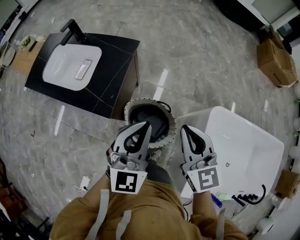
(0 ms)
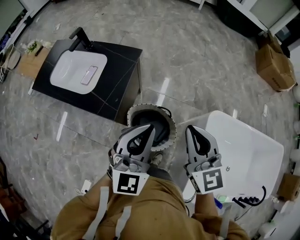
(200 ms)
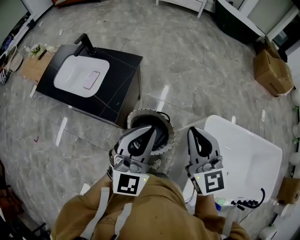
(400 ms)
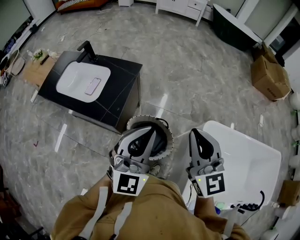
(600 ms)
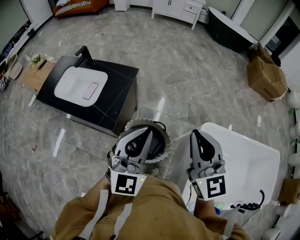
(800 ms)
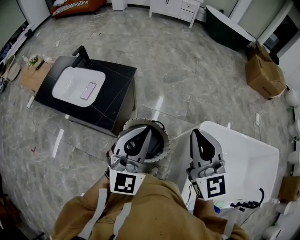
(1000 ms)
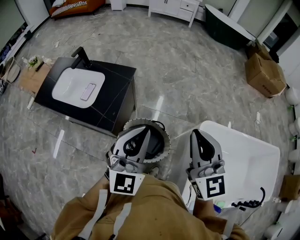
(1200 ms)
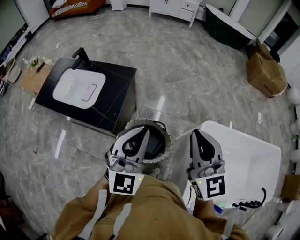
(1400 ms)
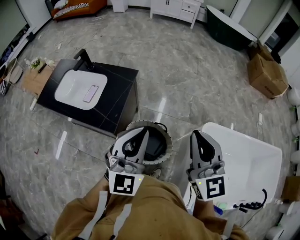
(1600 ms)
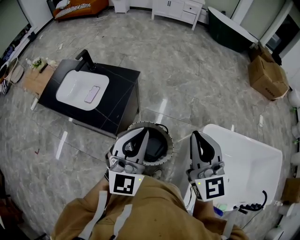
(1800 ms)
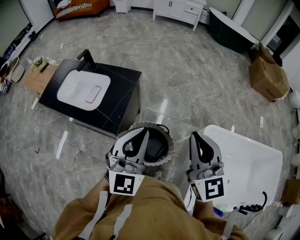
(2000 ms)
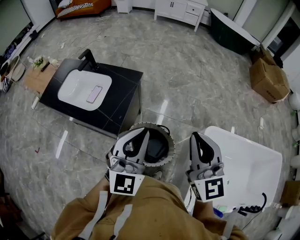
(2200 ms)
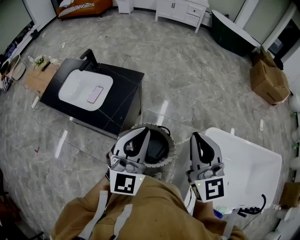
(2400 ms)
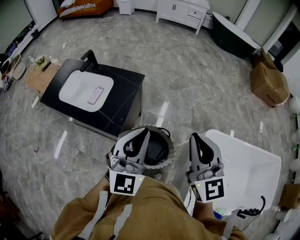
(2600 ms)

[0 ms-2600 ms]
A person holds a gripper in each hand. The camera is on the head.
0 ms to 1200 ms: Both grippers move upward, roughly 15 cm.
1200 ms to 2600 ms: There are only small adjustments of the grippers.

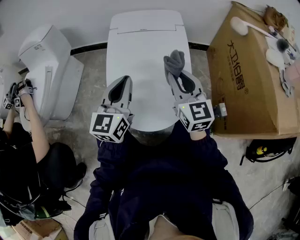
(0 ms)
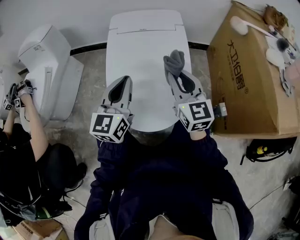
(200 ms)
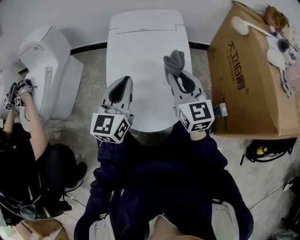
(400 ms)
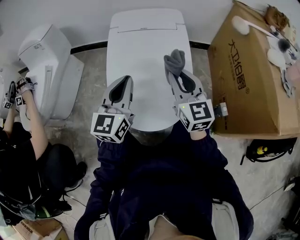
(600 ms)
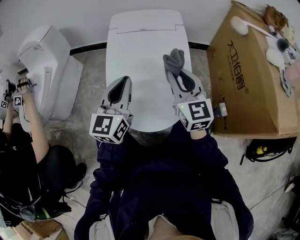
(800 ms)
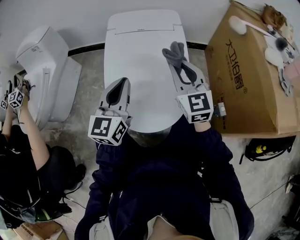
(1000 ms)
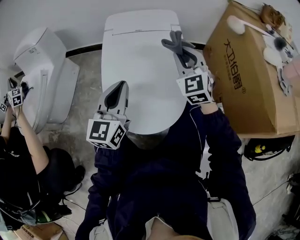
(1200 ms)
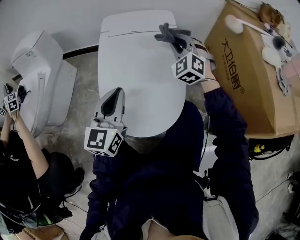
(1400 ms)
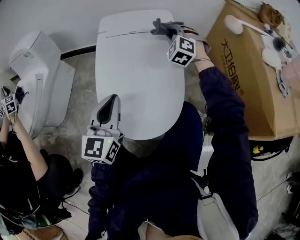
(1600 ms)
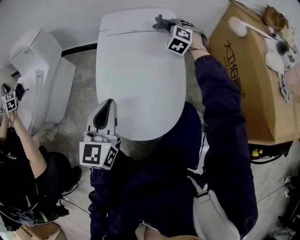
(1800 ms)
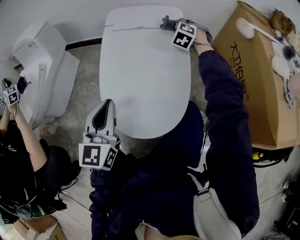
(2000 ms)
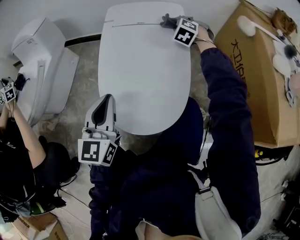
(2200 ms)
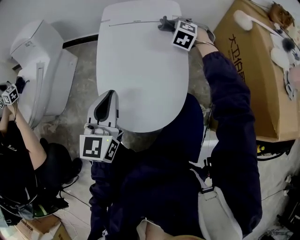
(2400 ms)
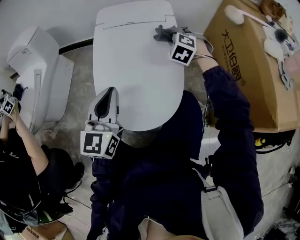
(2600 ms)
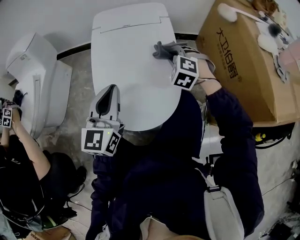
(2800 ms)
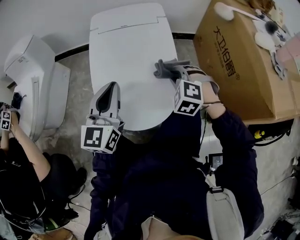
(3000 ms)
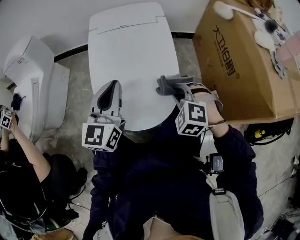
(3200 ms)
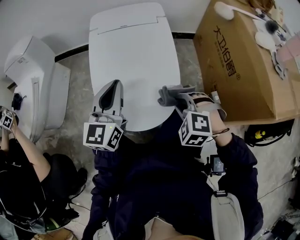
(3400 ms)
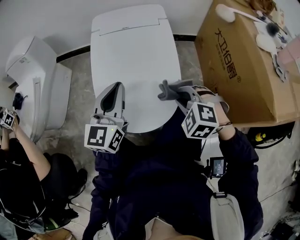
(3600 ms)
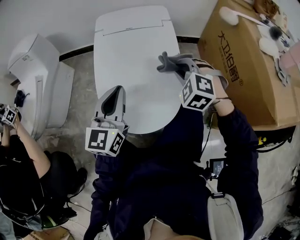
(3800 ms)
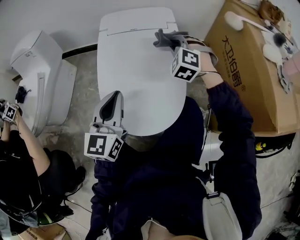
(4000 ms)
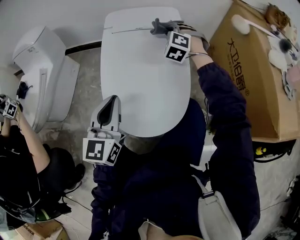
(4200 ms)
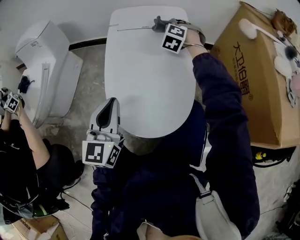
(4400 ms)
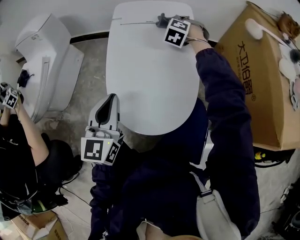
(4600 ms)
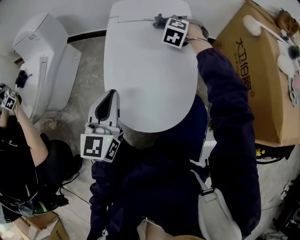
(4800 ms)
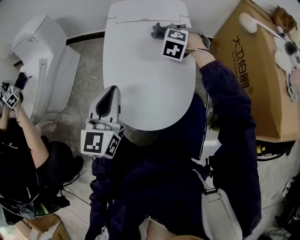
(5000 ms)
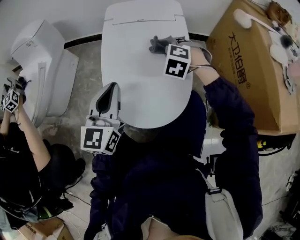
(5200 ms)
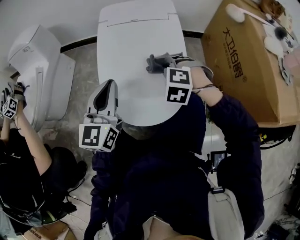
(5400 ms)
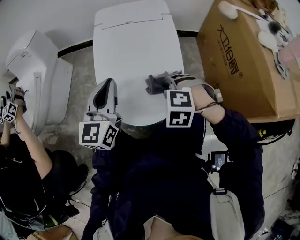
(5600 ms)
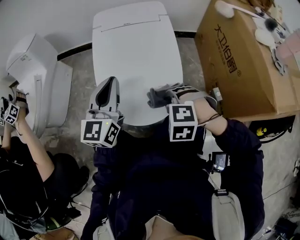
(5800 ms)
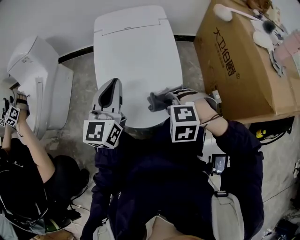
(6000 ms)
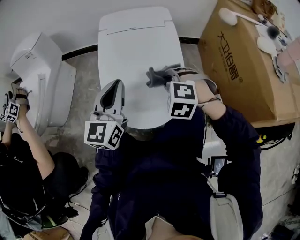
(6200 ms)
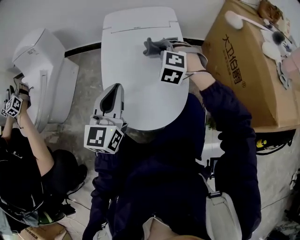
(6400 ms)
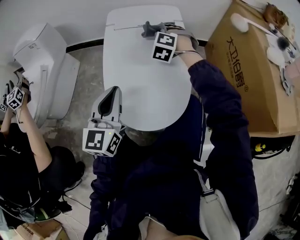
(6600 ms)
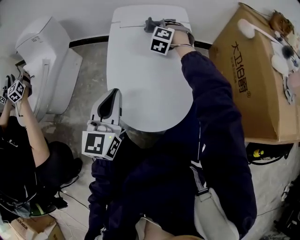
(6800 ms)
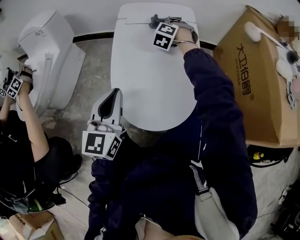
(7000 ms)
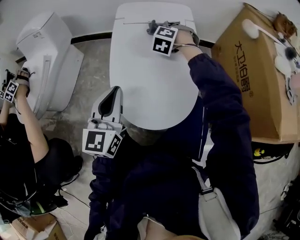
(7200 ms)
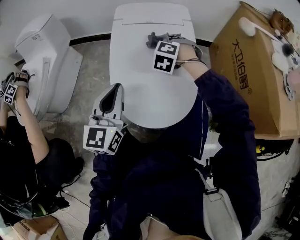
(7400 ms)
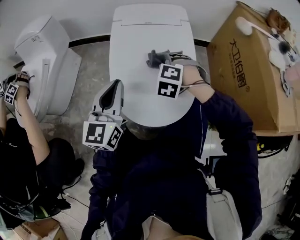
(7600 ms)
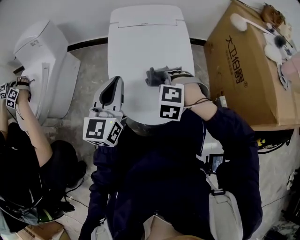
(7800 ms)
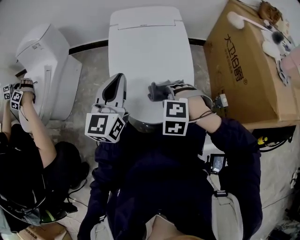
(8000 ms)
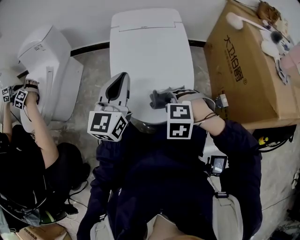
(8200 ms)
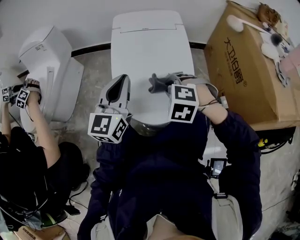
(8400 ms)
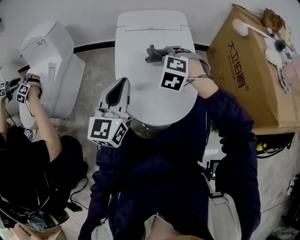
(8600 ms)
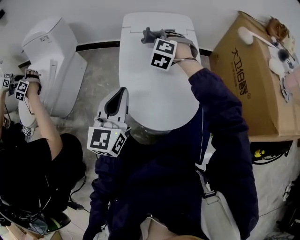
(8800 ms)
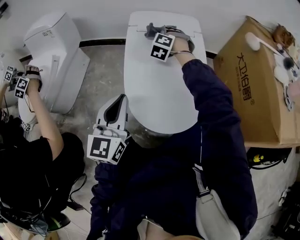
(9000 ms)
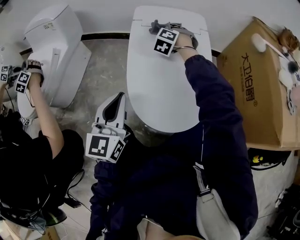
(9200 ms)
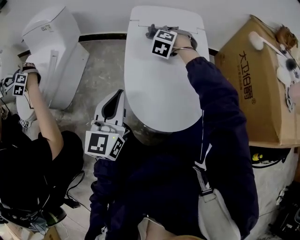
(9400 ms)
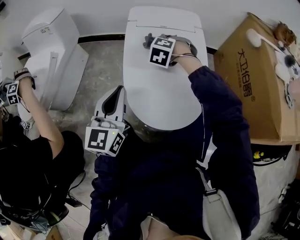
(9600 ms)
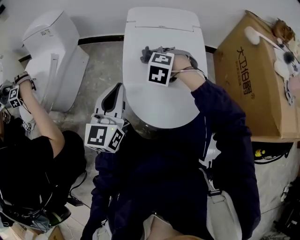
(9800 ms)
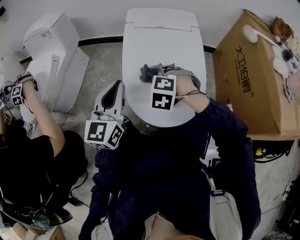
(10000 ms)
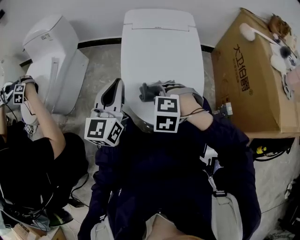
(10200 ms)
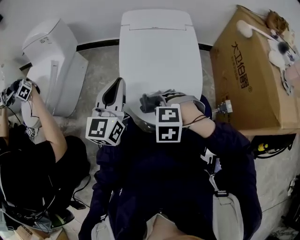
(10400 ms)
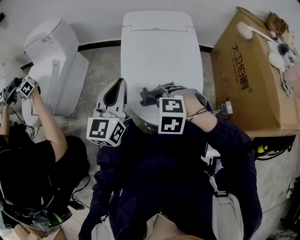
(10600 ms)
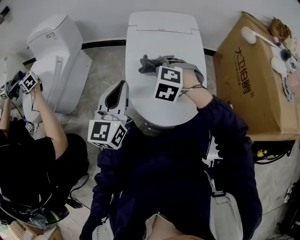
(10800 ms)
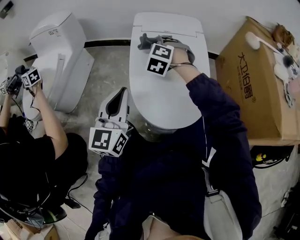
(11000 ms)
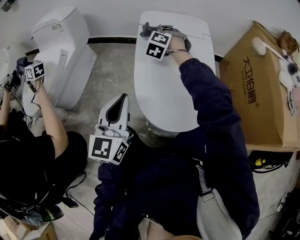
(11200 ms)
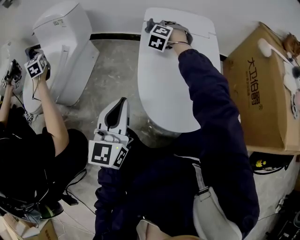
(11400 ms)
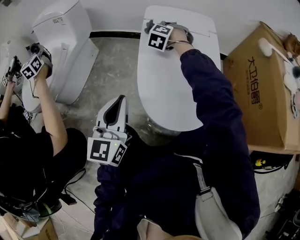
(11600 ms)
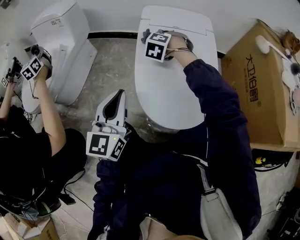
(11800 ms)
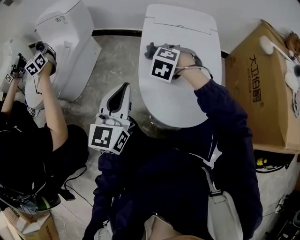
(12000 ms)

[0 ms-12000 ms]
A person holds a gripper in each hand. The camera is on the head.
3000 ms to 4400 ms: The left gripper ends up about 5 cm from where it was.
4400 ms to 6000 ms: The left gripper ends up roughly 5 cm from where it was.
6000 ms to 7600 ms: The left gripper shifts by roughly 5 cm.

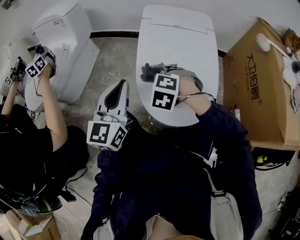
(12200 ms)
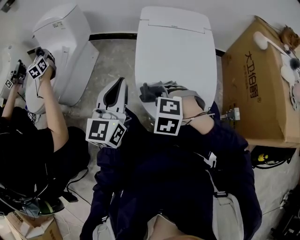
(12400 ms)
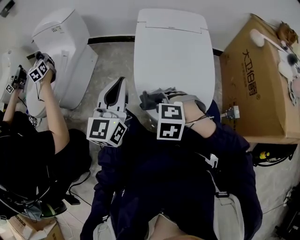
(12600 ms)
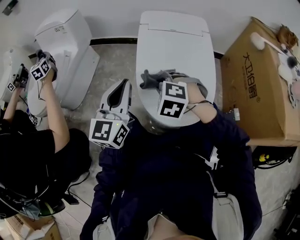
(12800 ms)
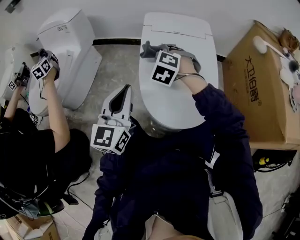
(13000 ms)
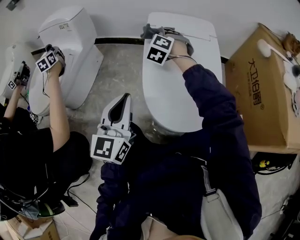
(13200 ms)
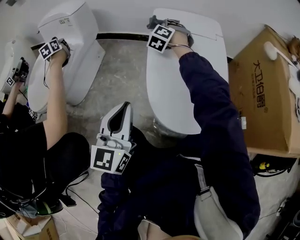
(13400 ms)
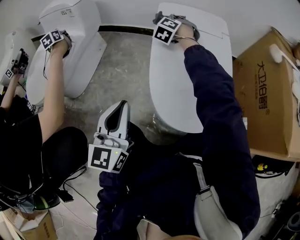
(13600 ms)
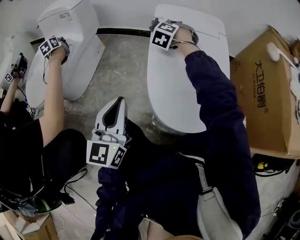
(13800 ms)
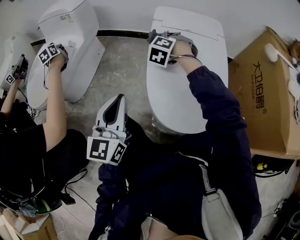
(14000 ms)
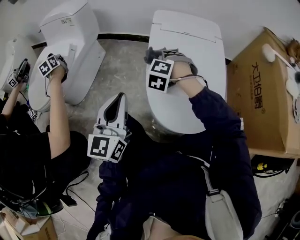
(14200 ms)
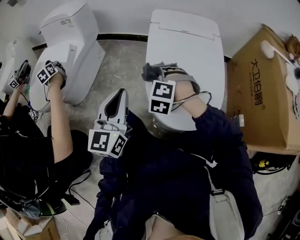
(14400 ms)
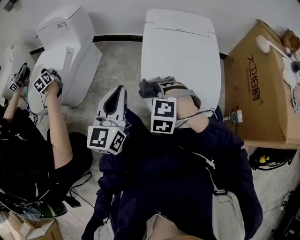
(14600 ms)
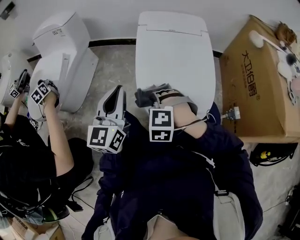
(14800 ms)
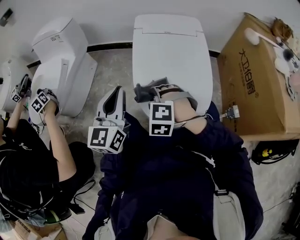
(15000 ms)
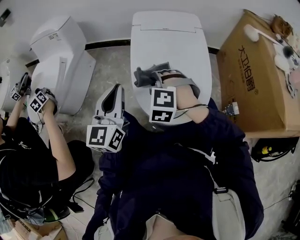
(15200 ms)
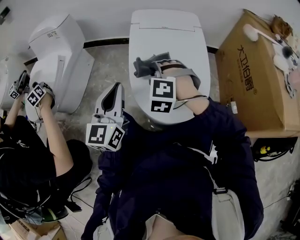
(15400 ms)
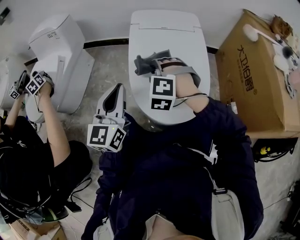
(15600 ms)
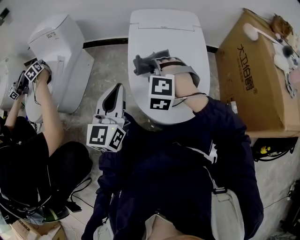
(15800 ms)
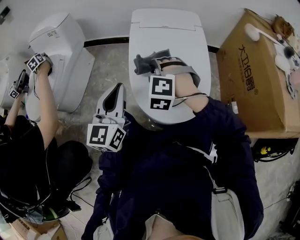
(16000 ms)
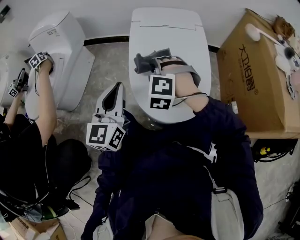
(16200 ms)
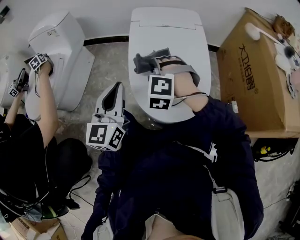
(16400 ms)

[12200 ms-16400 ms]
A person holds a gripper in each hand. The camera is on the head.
12200 ms to 13600 ms: The left gripper moves some 5 cm.
13600 ms to 15000 ms: The left gripper ends up roughly 5 cm from where it was.

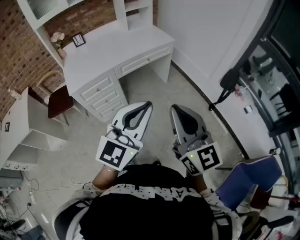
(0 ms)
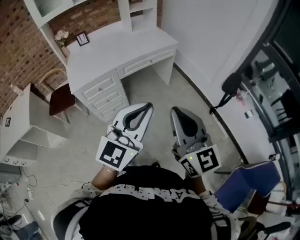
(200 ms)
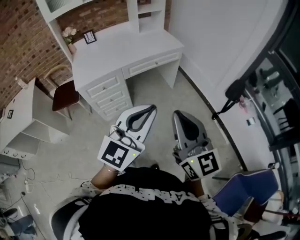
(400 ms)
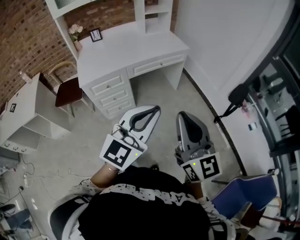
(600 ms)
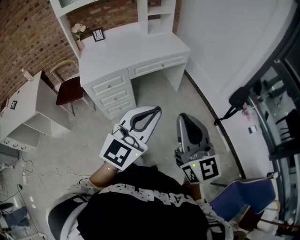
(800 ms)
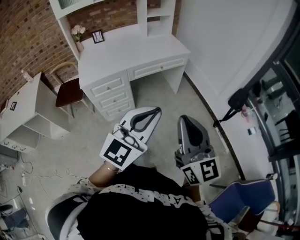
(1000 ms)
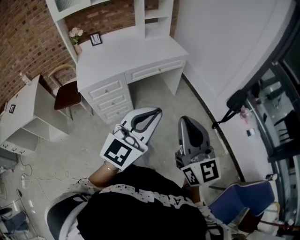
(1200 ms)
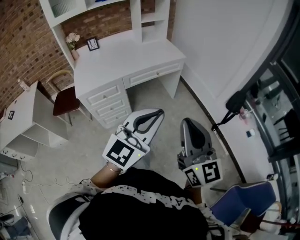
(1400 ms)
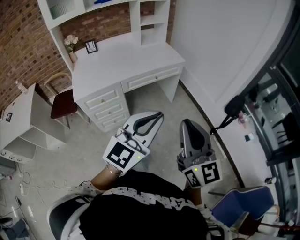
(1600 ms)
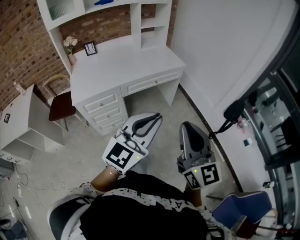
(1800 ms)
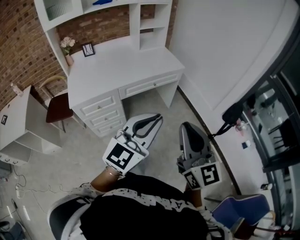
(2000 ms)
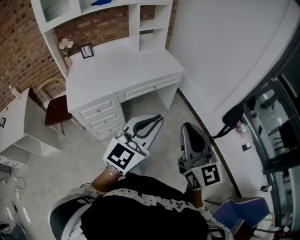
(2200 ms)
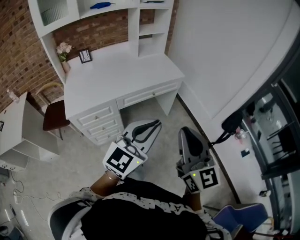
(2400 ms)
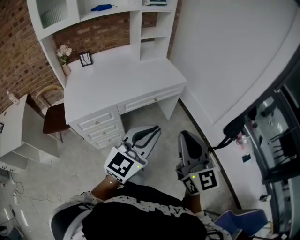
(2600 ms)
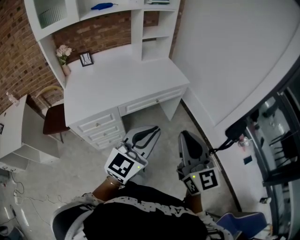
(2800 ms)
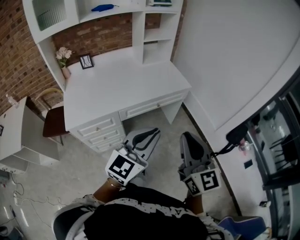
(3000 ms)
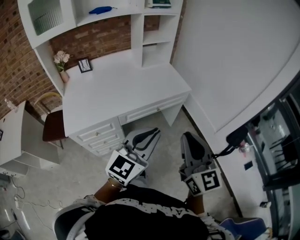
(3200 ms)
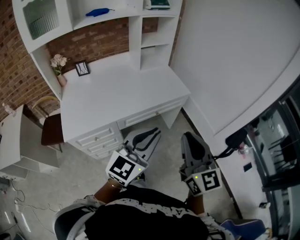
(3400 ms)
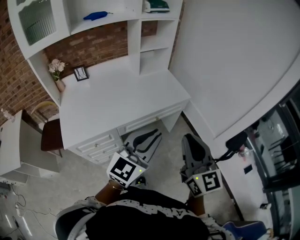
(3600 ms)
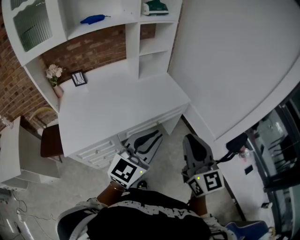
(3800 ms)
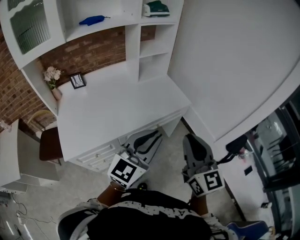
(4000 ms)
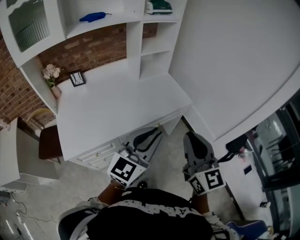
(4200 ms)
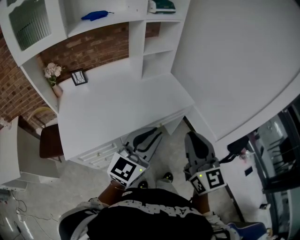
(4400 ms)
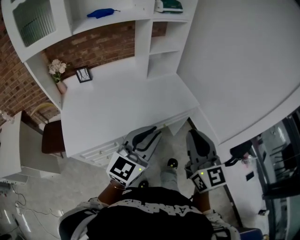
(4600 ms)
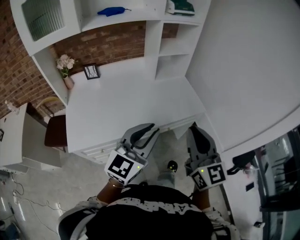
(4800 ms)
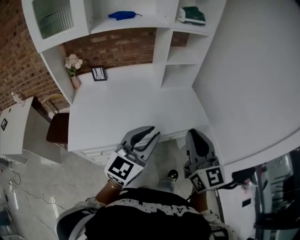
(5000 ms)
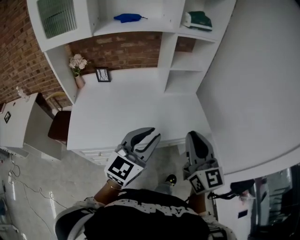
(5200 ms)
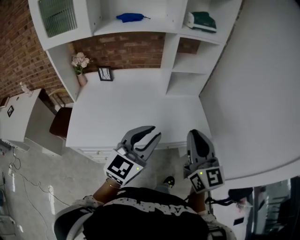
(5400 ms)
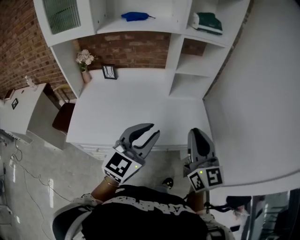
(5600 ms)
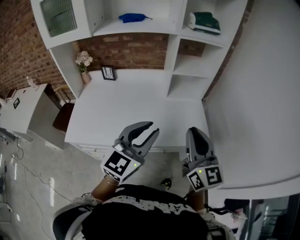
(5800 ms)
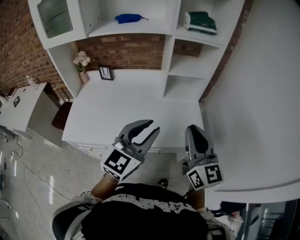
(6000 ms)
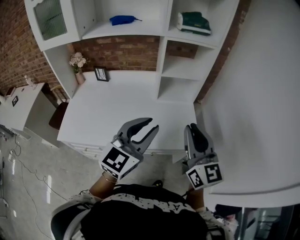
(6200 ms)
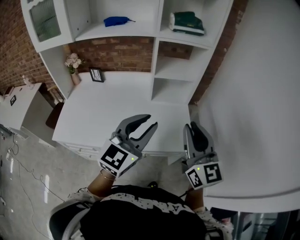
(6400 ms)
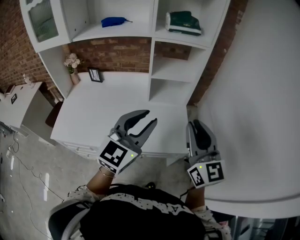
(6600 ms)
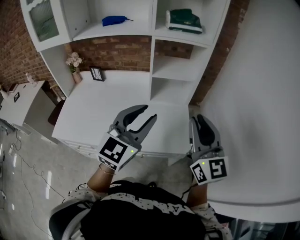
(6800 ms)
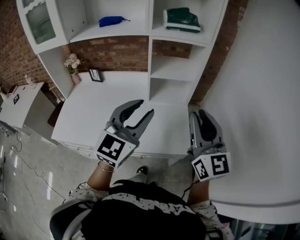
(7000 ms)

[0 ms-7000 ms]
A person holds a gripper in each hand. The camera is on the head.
0 ms to 1400 ms: The grippers move only a little.
1400 ms to 2800 ms: Both grippers travel together forward, about 20 cm.
2800 ms to 4200 ms: The grippers both shift forward and to the left by about 20 cm.
4200 ms to 5600 ms: The grippers both shift forward by approximately 15 cm. The left gripper turns by approximately 30 degrees. Meanwhile the right gripper swivels some 20 degrees.
5600 ms to 7000 ms: The left gripper heads to the right, forward and upward, covering approximately 20 cm; the right gripper heads to the right and forward, covering roughly 20 cm.
